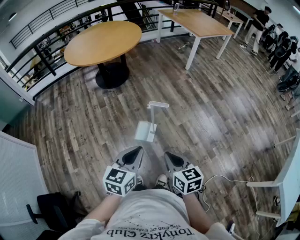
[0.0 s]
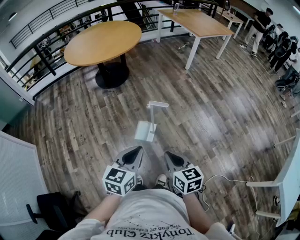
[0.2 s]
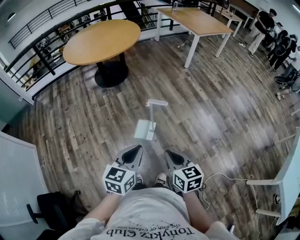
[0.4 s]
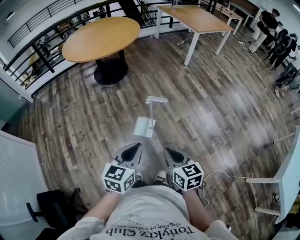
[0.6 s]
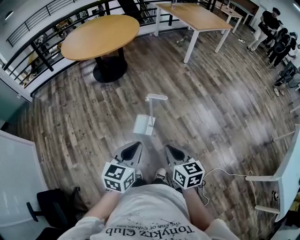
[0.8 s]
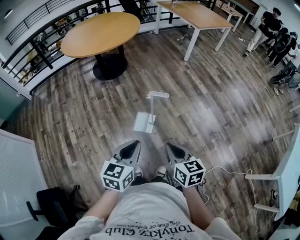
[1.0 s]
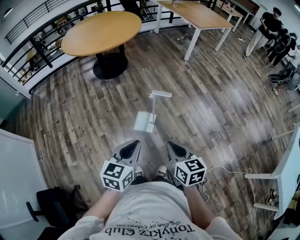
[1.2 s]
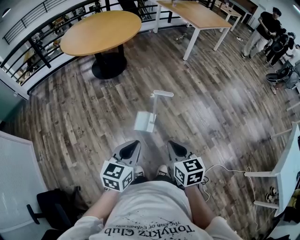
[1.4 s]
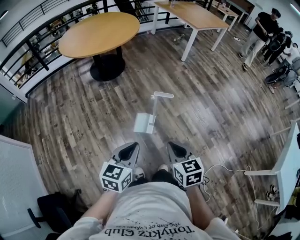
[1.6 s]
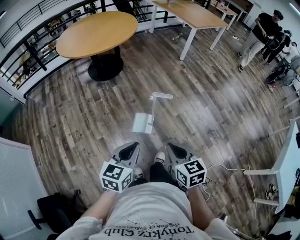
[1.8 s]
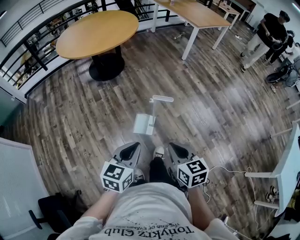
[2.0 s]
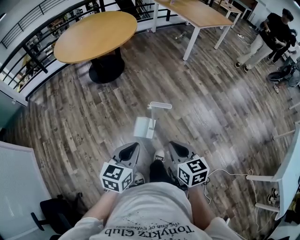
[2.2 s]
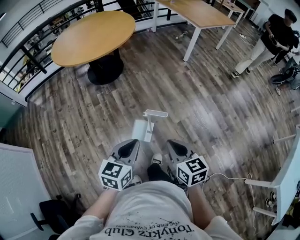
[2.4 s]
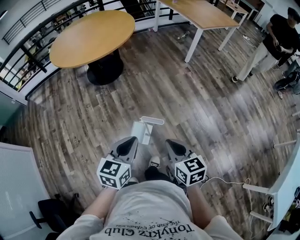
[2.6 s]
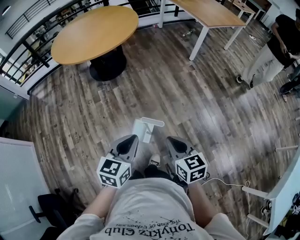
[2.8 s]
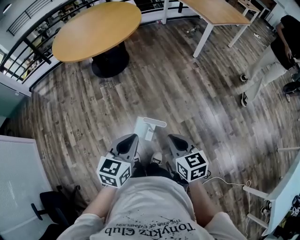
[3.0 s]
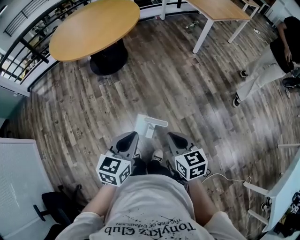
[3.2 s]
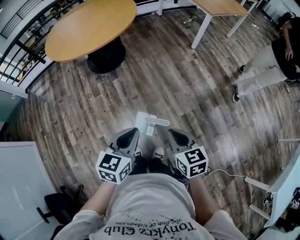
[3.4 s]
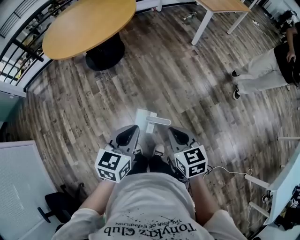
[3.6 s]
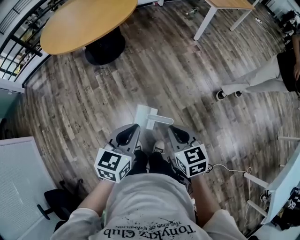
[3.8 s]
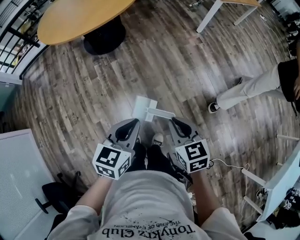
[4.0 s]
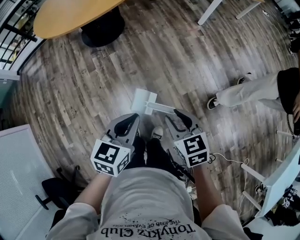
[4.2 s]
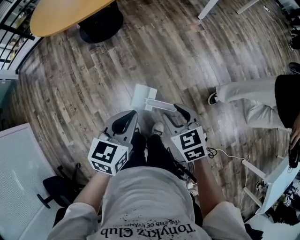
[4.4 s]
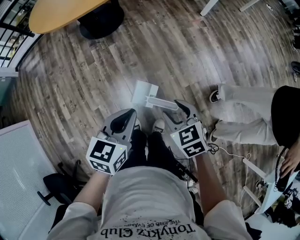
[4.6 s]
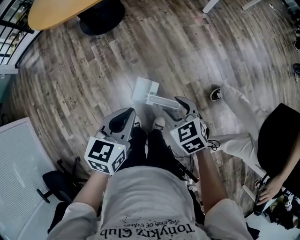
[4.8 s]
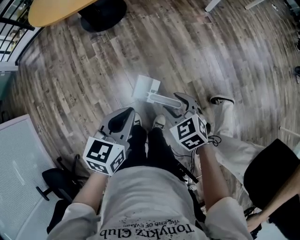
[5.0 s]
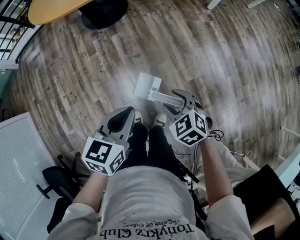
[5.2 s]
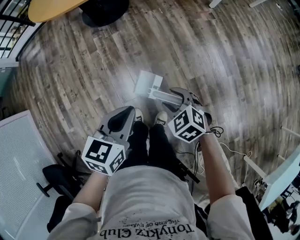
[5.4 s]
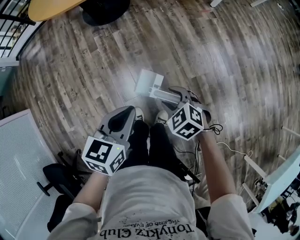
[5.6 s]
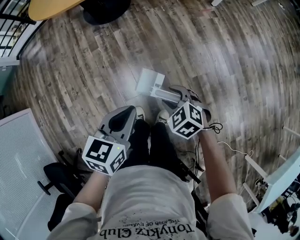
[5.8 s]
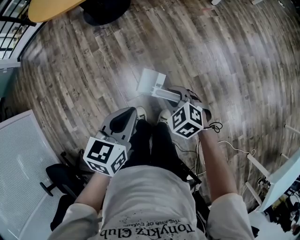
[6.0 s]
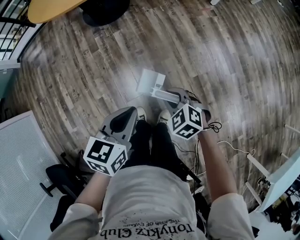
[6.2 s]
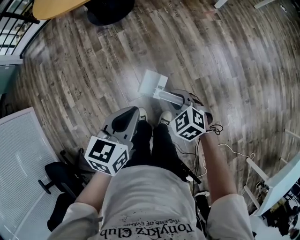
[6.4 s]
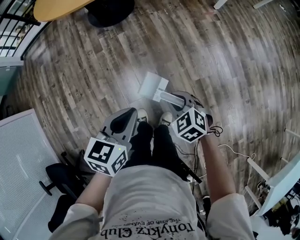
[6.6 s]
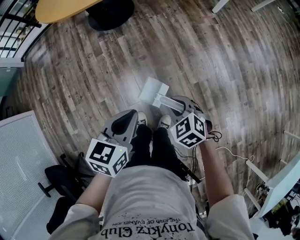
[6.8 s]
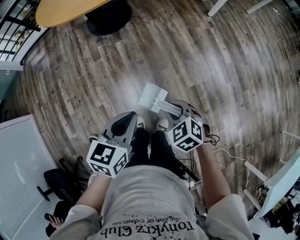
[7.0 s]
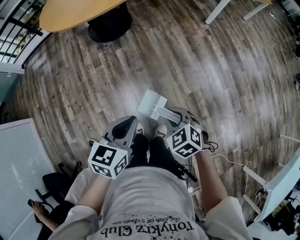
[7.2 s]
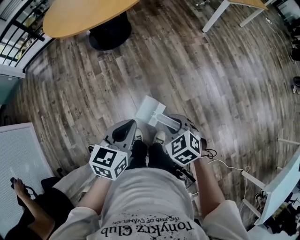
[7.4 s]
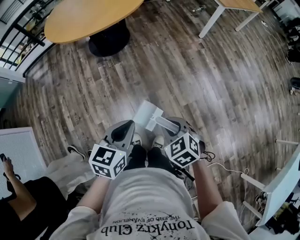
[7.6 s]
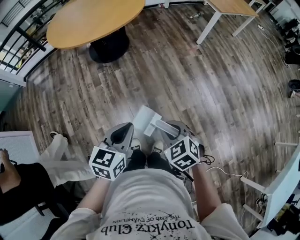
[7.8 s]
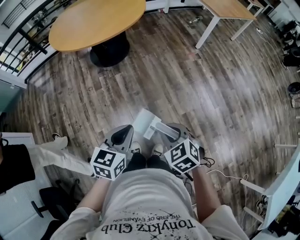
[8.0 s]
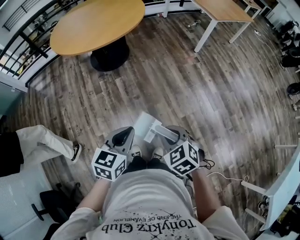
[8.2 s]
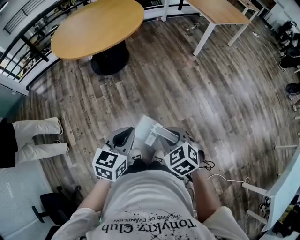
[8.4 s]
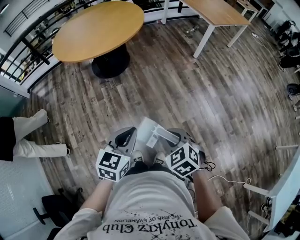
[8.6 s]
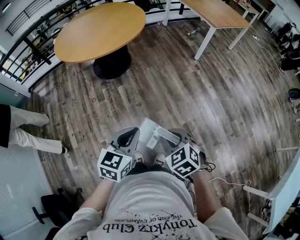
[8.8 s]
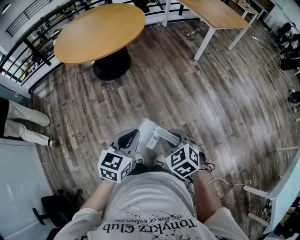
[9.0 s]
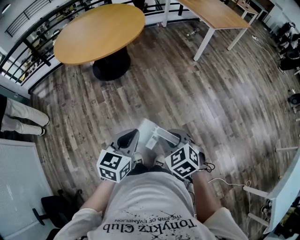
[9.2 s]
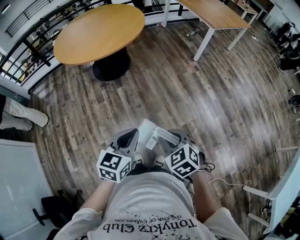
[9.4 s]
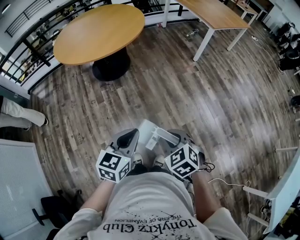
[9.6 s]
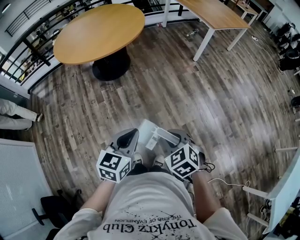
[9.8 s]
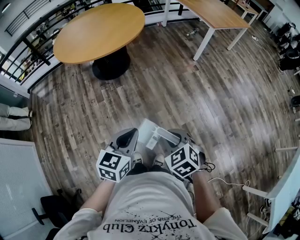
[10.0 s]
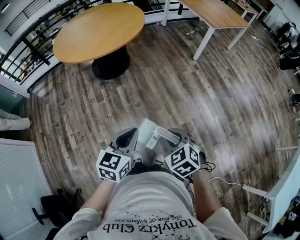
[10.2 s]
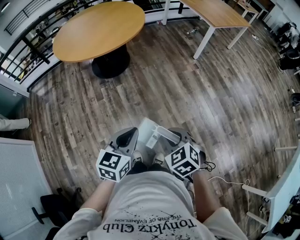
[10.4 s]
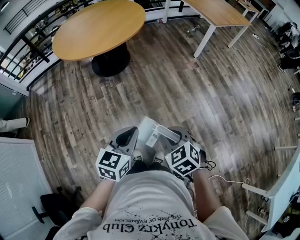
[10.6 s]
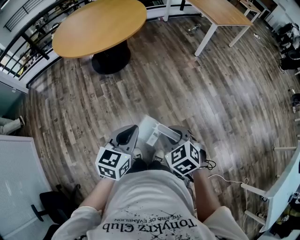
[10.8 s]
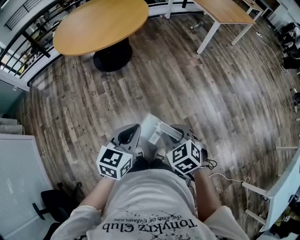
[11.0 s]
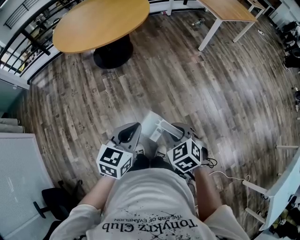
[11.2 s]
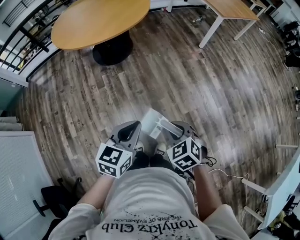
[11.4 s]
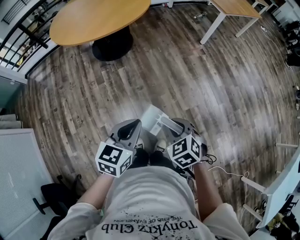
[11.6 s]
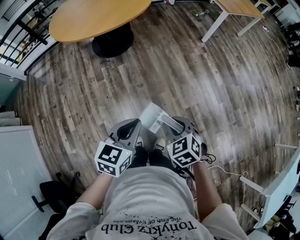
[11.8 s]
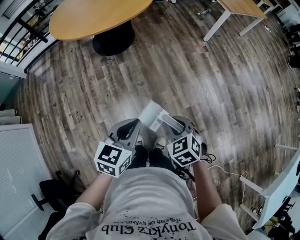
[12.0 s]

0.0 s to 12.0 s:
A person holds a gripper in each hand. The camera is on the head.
0.0 to 1.6 s: The grippers both shift to the left by some 5 cm.
1.6 to 3.0 s: The right gripper moves forward, some 25 cm. Meanwhile the left gripper travels forward and to the right by roughly 25 cm.
3.0 to 4.4 s: The left gripper heads forward and downward, covering approximately 10 cm. The right gripper shifts some 10 cm downward and forward, rotates some 20 degrees, and opens up.
4.4 to 6.0 s: The right gripper is displaced downward by some 10 cm, and changes its angle by about 30 degrees; the left gripper changes place by roughly 5 cm.
6.0 to 7.6 s: The right gripper is displaced upward and backward by approximately 15 cm. Meanwhile the left gripper moves upward, some 10 cm.
7.6 to 9.0 s: The two grippers go about 5 cm upward.
9.0 to 10.4 s: Both grippers stay about where they are.
10.4 to 12.0 s: The right gripper shifts about 10 cm downward, while the left gripper moves roughly 5 cm.

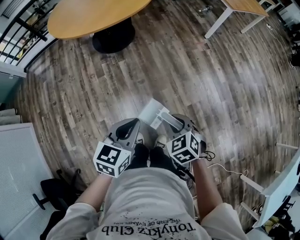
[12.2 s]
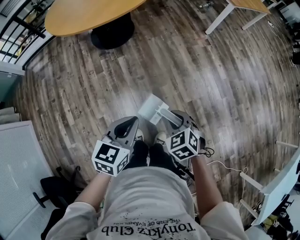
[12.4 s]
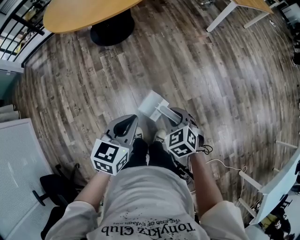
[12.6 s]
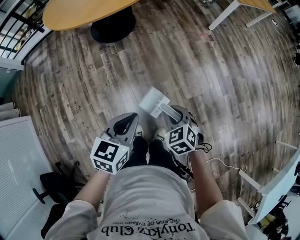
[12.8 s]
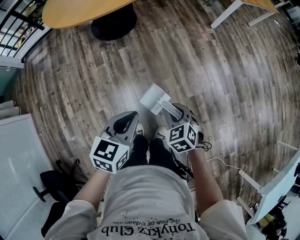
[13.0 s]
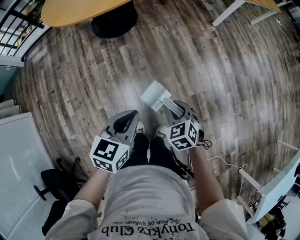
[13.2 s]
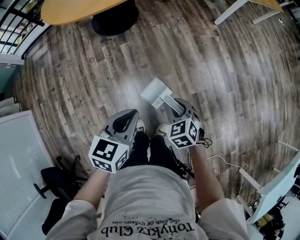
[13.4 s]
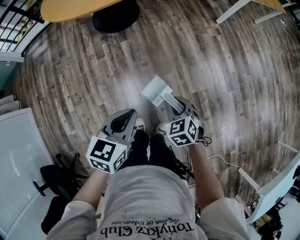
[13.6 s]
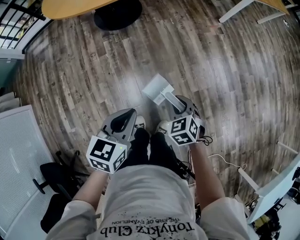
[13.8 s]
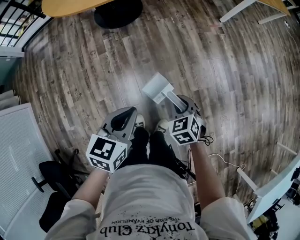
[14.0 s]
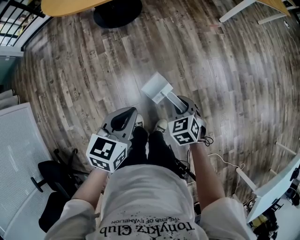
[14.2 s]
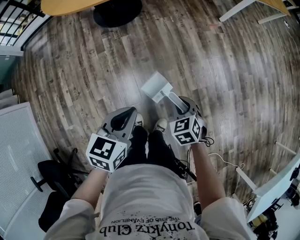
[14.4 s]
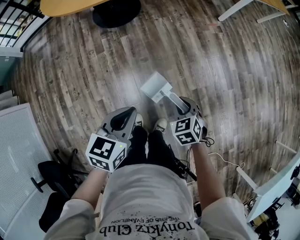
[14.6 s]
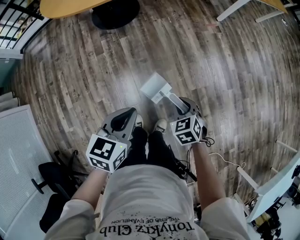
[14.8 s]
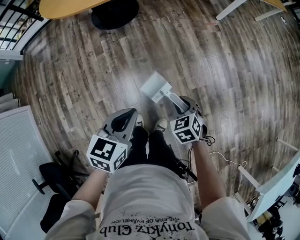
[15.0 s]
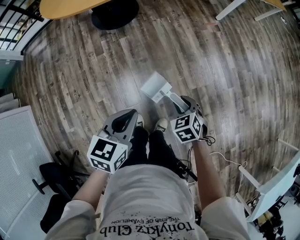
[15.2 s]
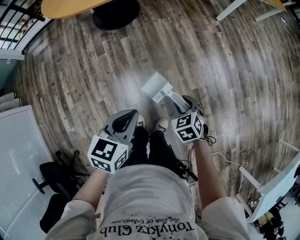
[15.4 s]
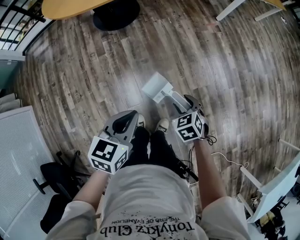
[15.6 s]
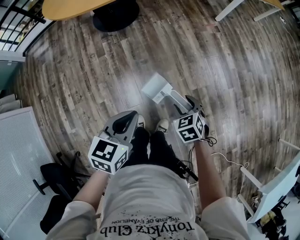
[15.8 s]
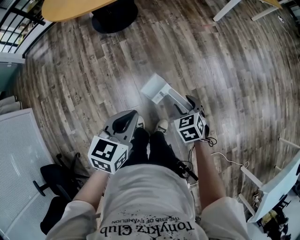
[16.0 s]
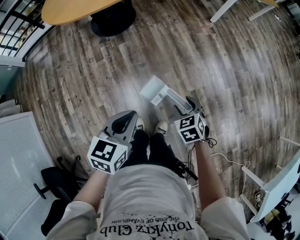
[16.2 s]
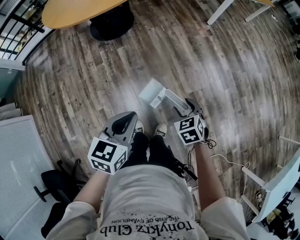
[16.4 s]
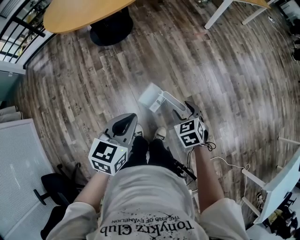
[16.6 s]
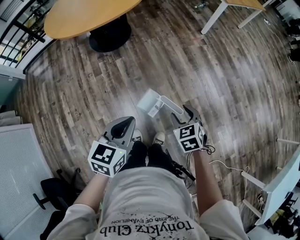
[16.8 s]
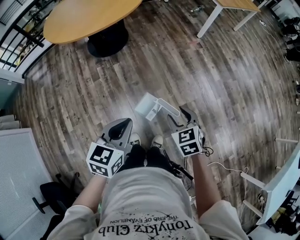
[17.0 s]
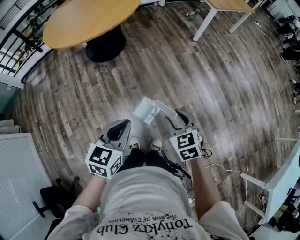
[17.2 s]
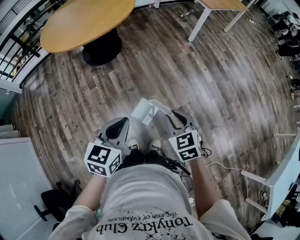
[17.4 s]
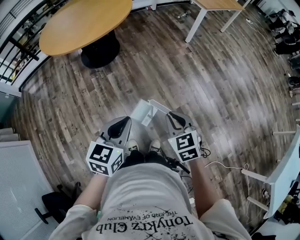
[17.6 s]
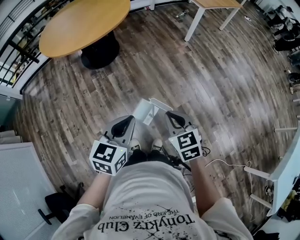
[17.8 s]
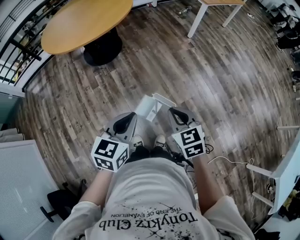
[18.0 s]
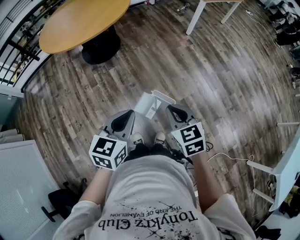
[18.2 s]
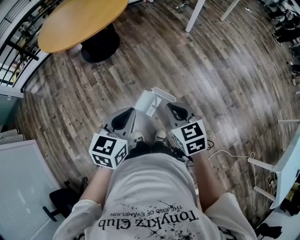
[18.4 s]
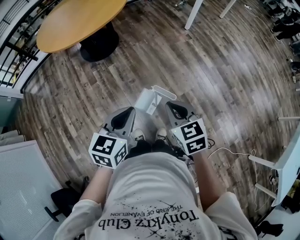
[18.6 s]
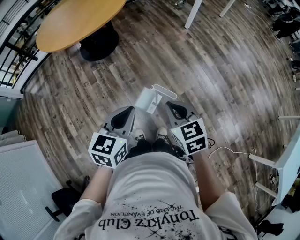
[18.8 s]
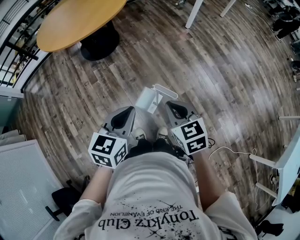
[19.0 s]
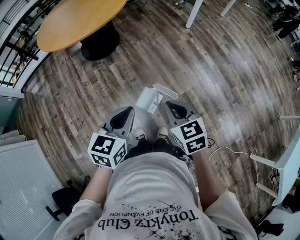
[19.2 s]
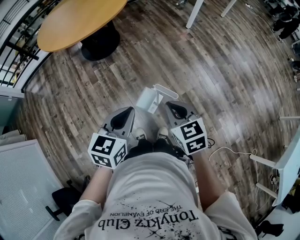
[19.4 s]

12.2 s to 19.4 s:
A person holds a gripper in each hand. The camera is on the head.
12.2 to 13.6 s: The right gripper is displaced downward and forward by about 10 cm, while the left gripper changes place by some 5 cm.
13.6 to 15.0 s: The grippers move only a little.
15.0 to 16.6 s: The right gripper travels upward by approximately 5 cm, and opens. Meanwhile the left gripper moves some 5 cm.
16.6 to 18.0 s: The right gripper goes roughly 15 cm upward, changes its angle by some 20 degrees, and closes up, while the left gripper travels upward by some 5 cm.
18.0 to 19.4 s: The grippers stay close to where they were, moving slightly.

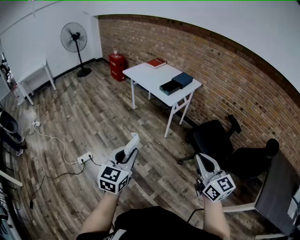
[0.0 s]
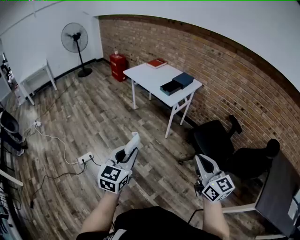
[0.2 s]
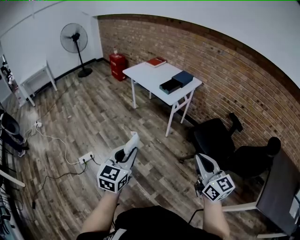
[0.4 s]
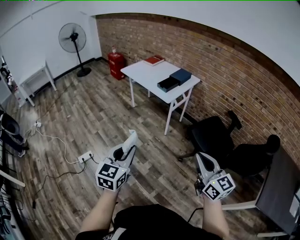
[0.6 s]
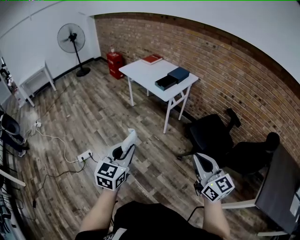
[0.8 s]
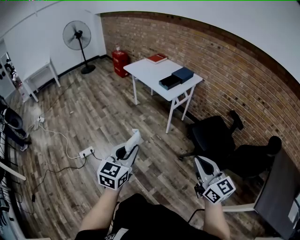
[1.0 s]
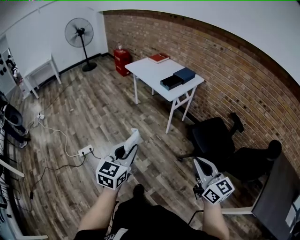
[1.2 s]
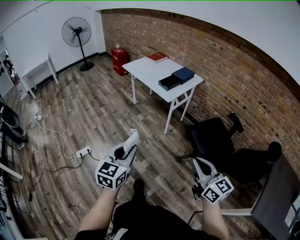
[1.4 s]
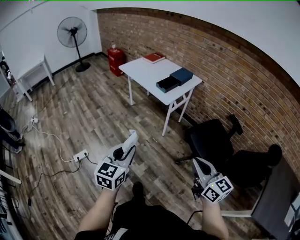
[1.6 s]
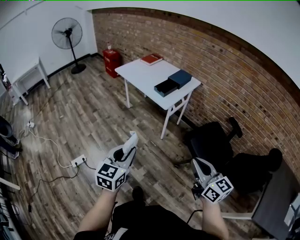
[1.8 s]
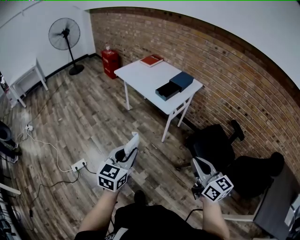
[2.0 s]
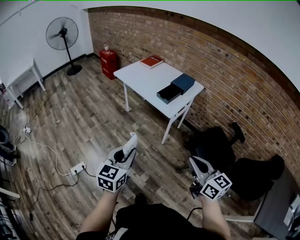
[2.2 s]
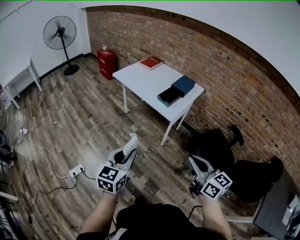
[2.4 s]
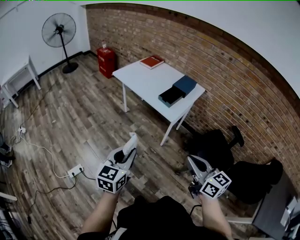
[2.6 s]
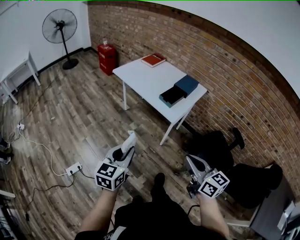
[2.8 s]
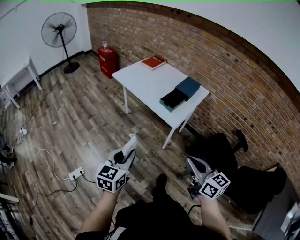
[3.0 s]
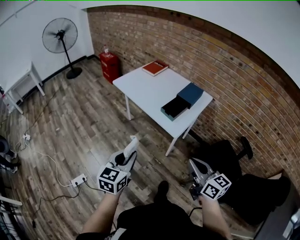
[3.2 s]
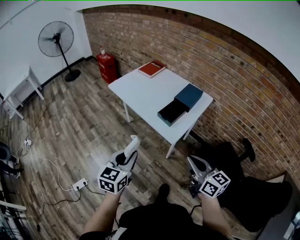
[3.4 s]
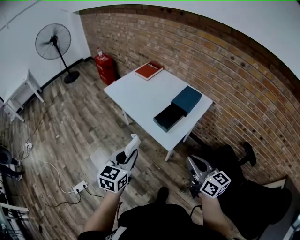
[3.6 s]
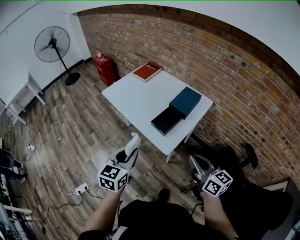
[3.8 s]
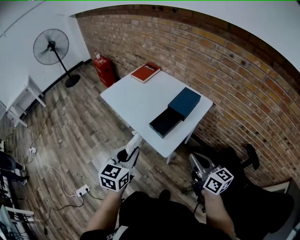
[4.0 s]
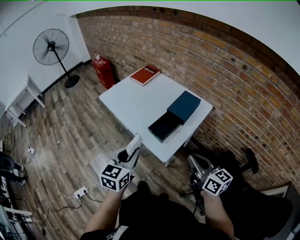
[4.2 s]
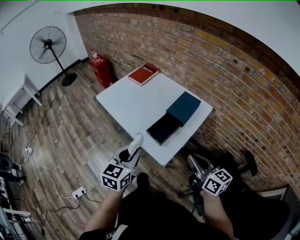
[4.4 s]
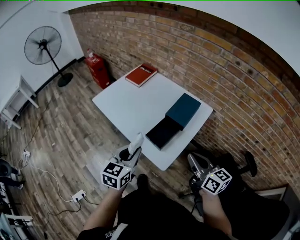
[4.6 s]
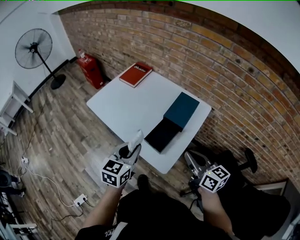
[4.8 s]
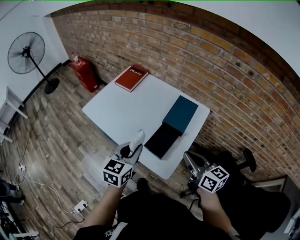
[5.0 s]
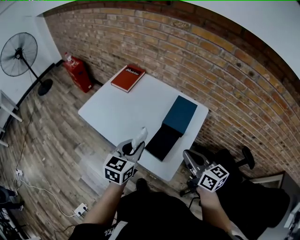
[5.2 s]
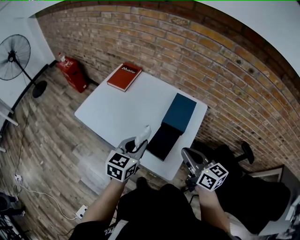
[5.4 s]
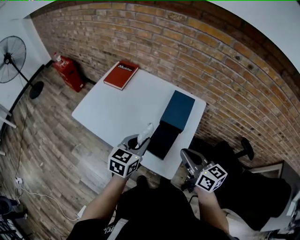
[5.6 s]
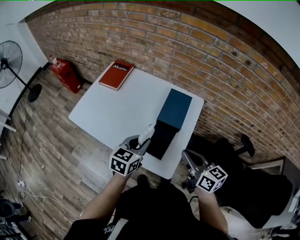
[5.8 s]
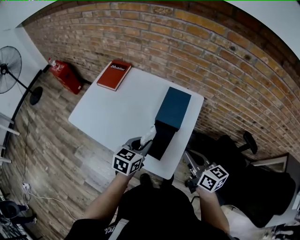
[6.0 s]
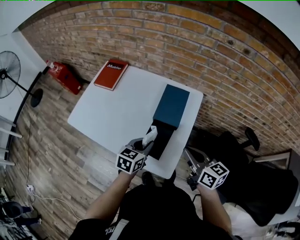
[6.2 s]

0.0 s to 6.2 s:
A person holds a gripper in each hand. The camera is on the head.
0.0 to 1.6 s: The left gripper moves forward and to the right, about 10 cm, while the right gripper travels forward, to the right and downward by roughly 10 cm.
1.6 to 3.2 s: The grippers both shift forward by roughly 35 cm.
3.2 to 4.6 s: Both grippers travel together forward and to the right, approximately 30 cm.
4.6 to 6.2 s: The left gripper is displaced forward and downward by some 20 cm, and rotates about 30 degrees. The right gripper moves forward and downward, roughly 10 cm.
